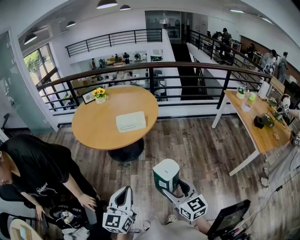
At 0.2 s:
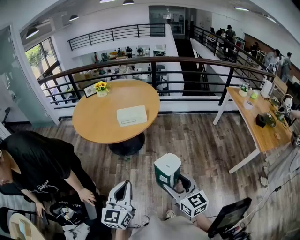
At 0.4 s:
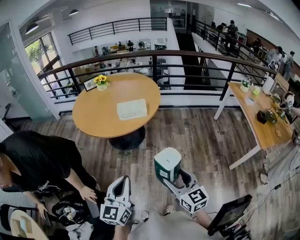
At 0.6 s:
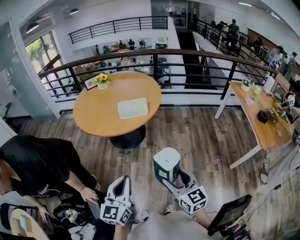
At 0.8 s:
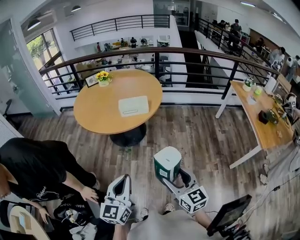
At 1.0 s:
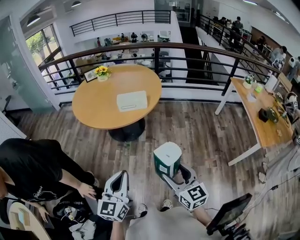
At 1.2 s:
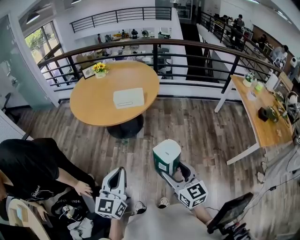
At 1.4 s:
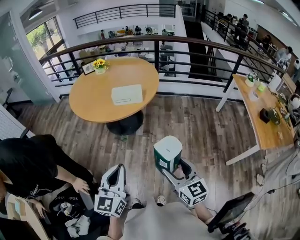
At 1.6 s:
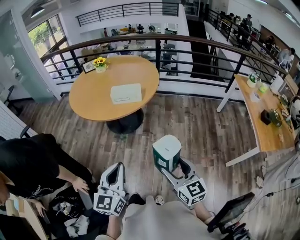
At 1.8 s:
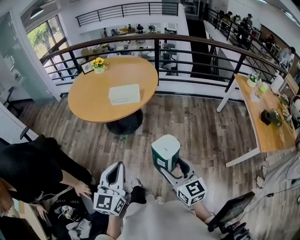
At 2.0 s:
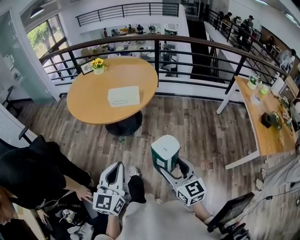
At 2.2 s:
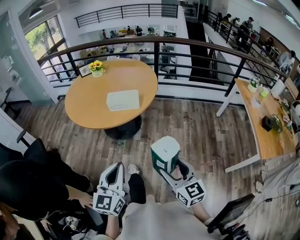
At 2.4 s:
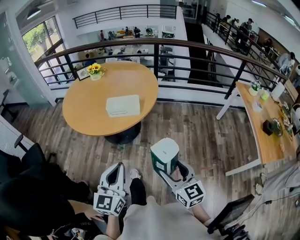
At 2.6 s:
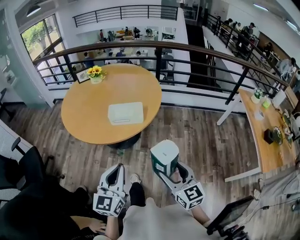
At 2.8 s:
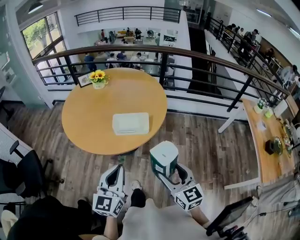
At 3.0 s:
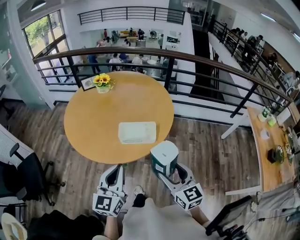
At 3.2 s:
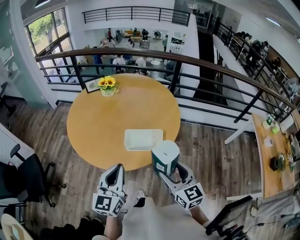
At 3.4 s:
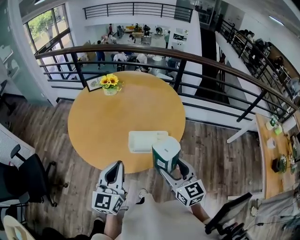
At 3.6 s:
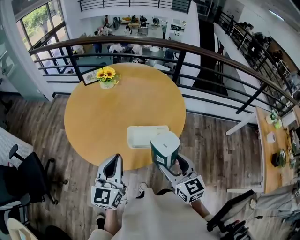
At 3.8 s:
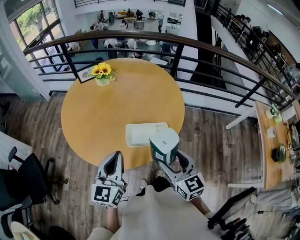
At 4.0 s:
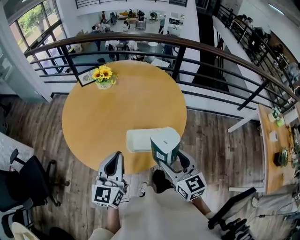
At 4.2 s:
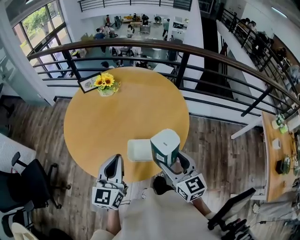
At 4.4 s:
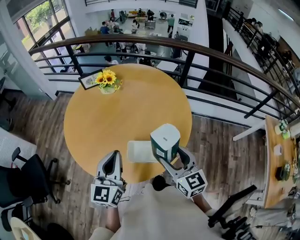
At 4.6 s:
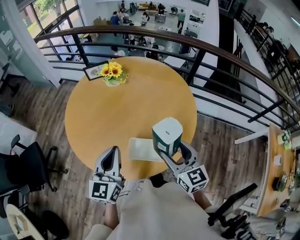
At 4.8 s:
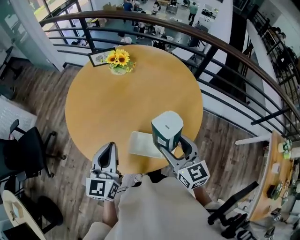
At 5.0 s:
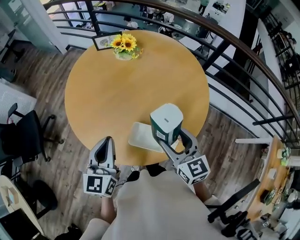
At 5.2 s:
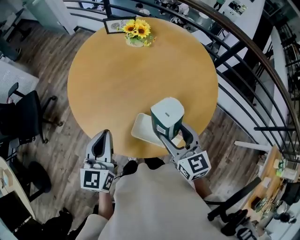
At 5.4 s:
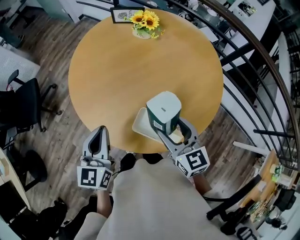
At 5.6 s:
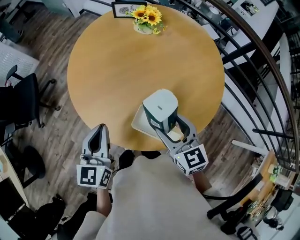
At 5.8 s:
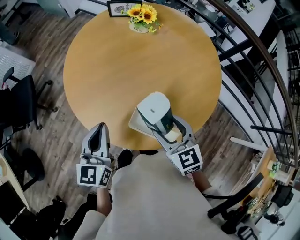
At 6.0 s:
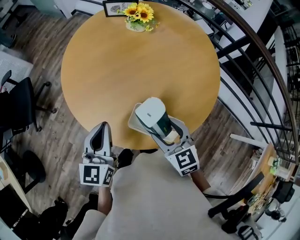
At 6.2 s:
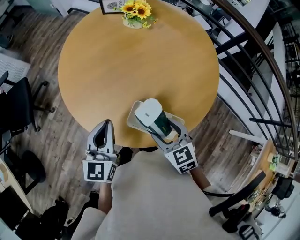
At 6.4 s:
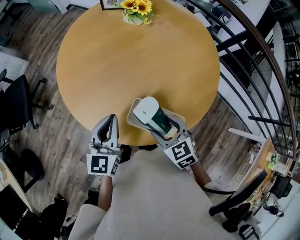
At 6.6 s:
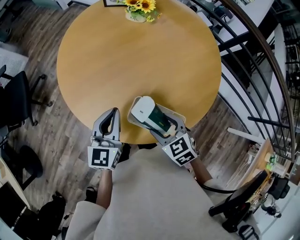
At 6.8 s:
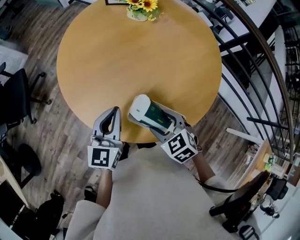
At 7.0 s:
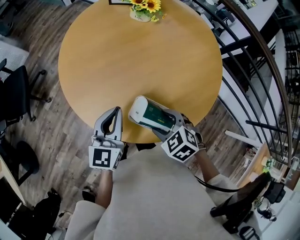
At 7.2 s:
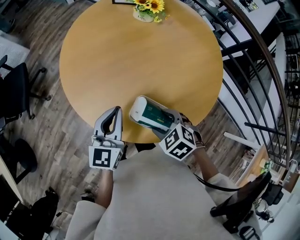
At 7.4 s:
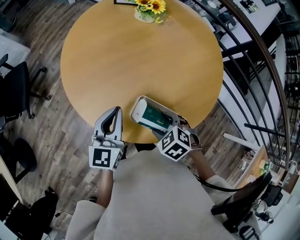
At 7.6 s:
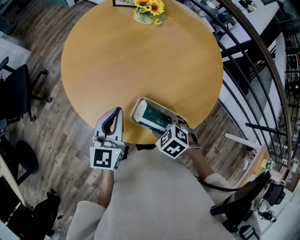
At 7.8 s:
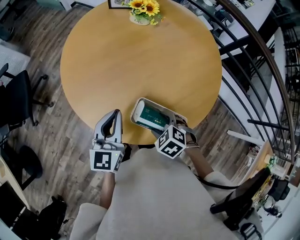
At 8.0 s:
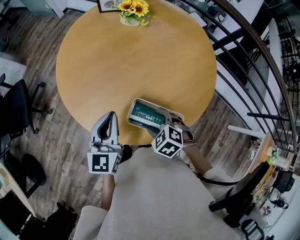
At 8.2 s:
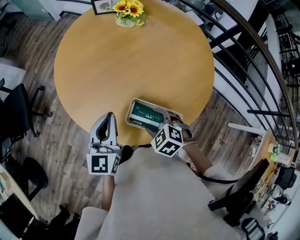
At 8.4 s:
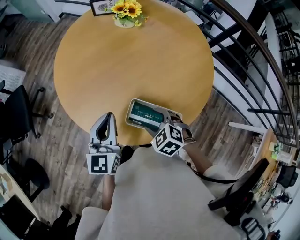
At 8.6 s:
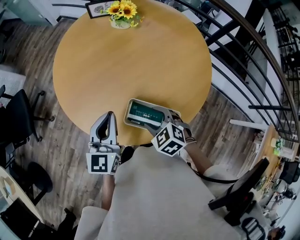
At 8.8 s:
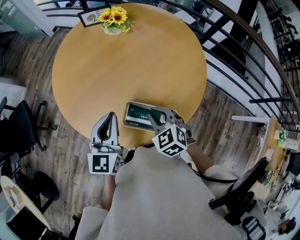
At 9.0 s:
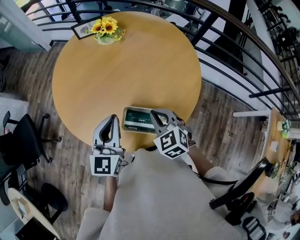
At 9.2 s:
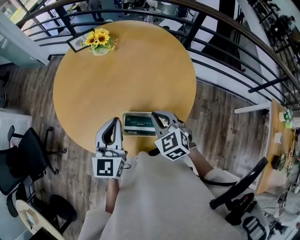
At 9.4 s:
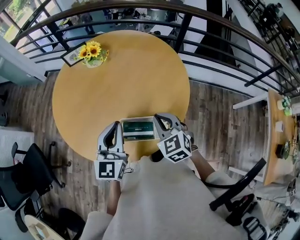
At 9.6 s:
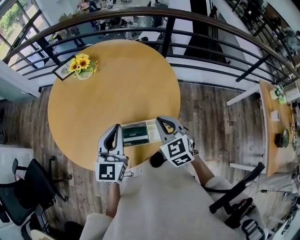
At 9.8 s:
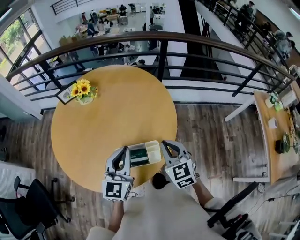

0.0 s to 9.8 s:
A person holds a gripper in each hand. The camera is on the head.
0.0 to 1.4 s: The right gripper goes roughly 5 cm to the right, while the left gripper shifts by some 5 cm.
1.4 to 2.8 s: Both grippers move forward, approximately 20 cm.
2.8 to 4.2 s: Both grippers move forward, roughly 20 cm.
4.2 to 5.6 s: The right gripper shifts by some 10 cm, and swivels some 30 degrees; the left gripper ends up about 10 cm from where it was, and rotates approximately 30 degrees.
5.6 to 7.0 s: The left gripper is displaced to the right by some 5 cm. Meanwhile the right gripper goes roughly 10 cm downward, and angles its fingers downward, by roughly 40 degrees.
7.0 to 8.4 s: The grippers move only a little.
8.4 to 9.8 s: The right gripper shifts by some 20 cm, angles its fingers upward, by approximately 40 degrees, and closes. Meanwhile the left gripper ends up about 15 cm from where it was, and swivels roughly 30 degrees.

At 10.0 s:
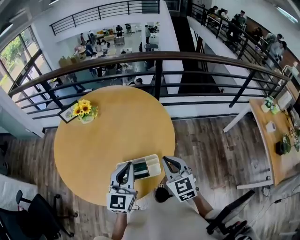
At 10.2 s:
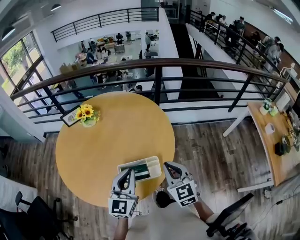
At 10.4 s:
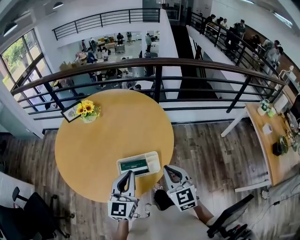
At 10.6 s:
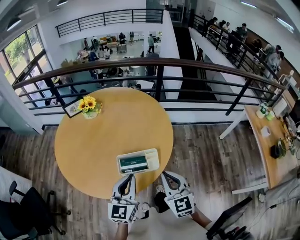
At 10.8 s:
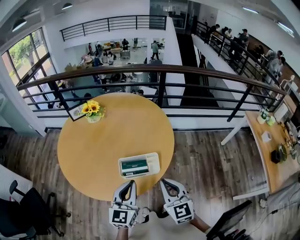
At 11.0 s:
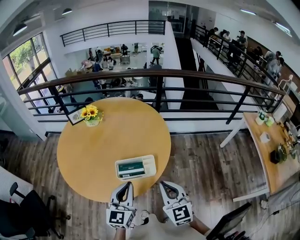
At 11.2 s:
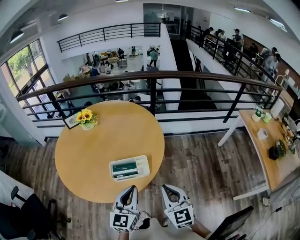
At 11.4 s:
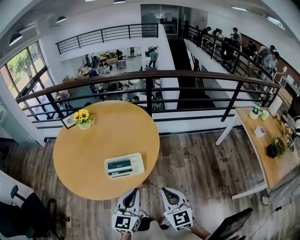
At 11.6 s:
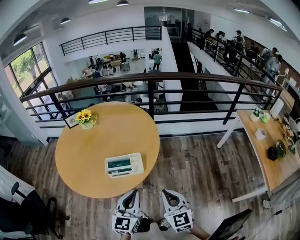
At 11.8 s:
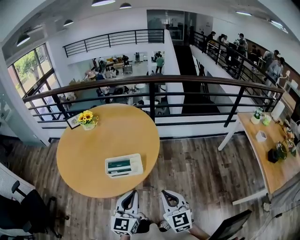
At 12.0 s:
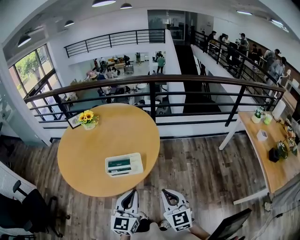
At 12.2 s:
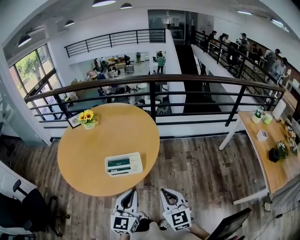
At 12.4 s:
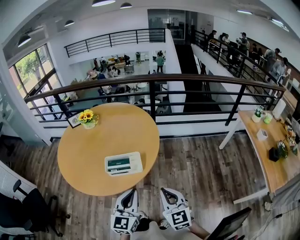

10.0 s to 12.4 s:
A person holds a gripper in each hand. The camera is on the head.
10.0 to 11.2 s: The two grippers go about 15 cm backward.
11.2 to 12.4 s: The left gripper ends up some 5 cm from where it was. Meanwhile the right gripper moves some 5 cm.

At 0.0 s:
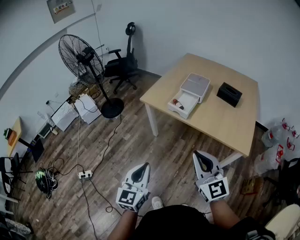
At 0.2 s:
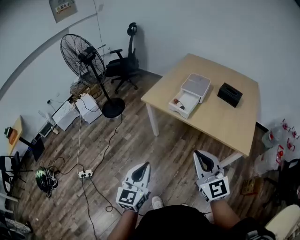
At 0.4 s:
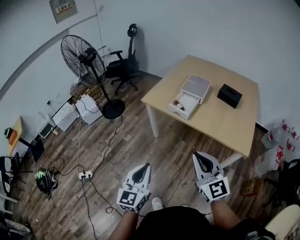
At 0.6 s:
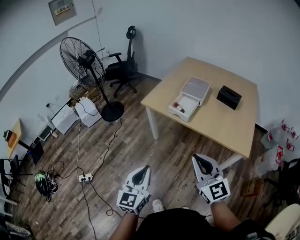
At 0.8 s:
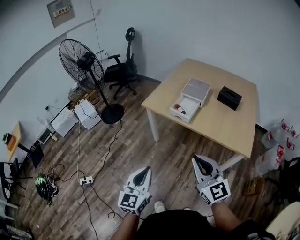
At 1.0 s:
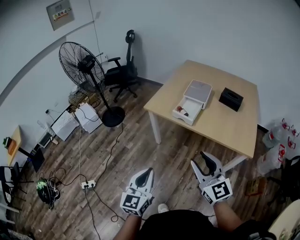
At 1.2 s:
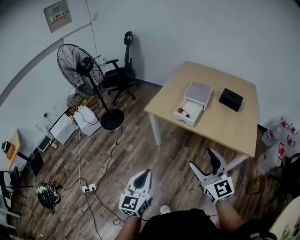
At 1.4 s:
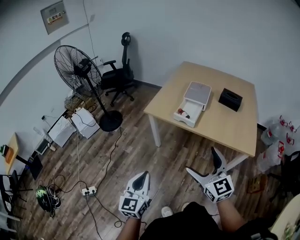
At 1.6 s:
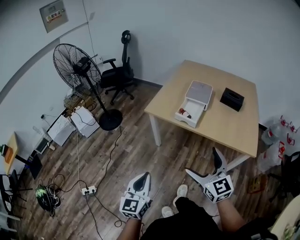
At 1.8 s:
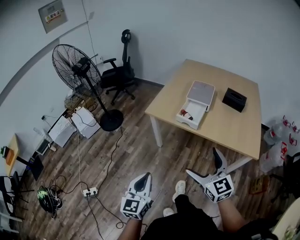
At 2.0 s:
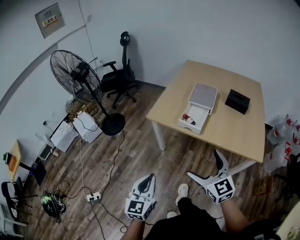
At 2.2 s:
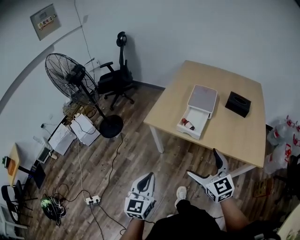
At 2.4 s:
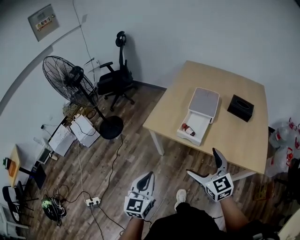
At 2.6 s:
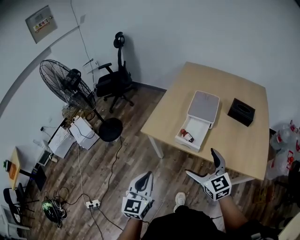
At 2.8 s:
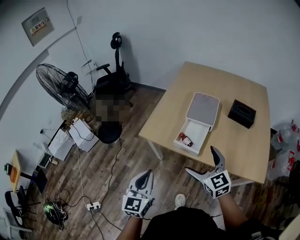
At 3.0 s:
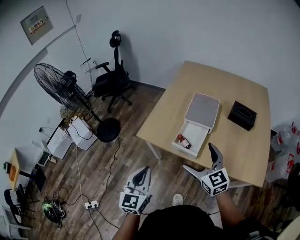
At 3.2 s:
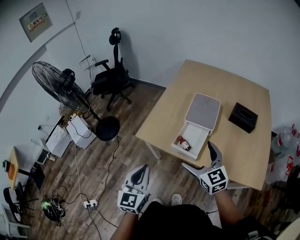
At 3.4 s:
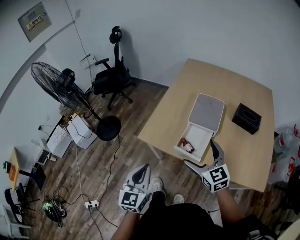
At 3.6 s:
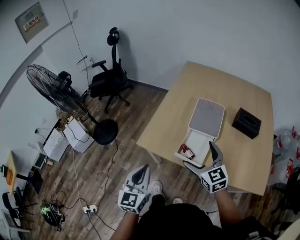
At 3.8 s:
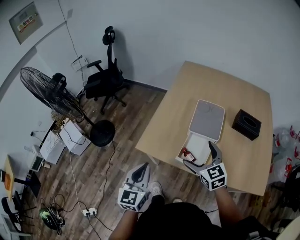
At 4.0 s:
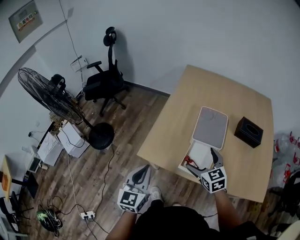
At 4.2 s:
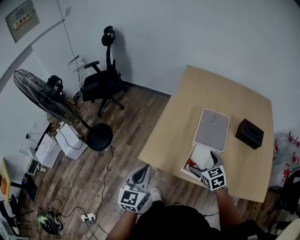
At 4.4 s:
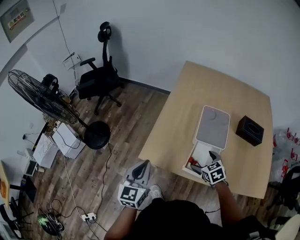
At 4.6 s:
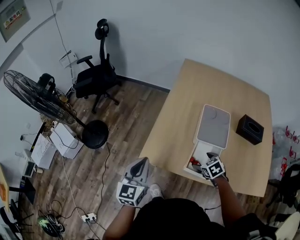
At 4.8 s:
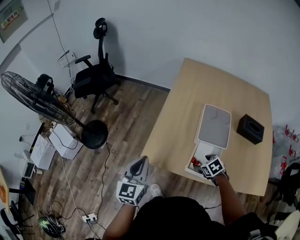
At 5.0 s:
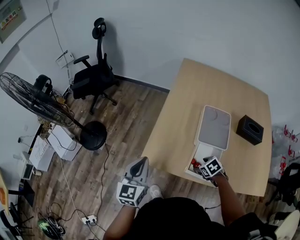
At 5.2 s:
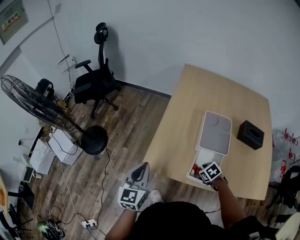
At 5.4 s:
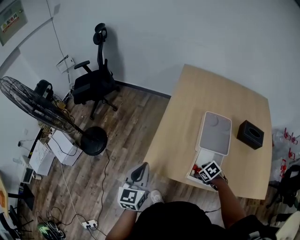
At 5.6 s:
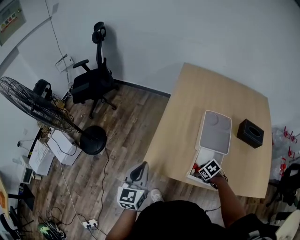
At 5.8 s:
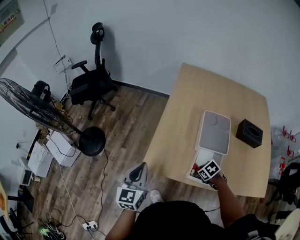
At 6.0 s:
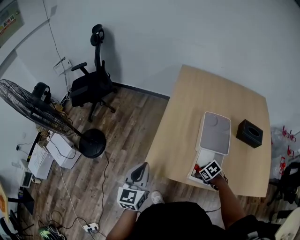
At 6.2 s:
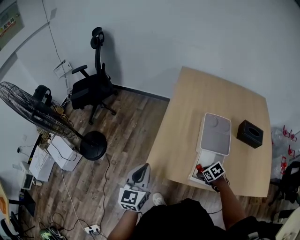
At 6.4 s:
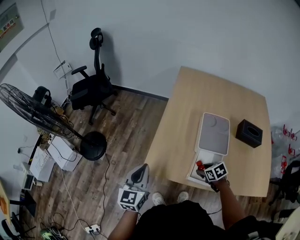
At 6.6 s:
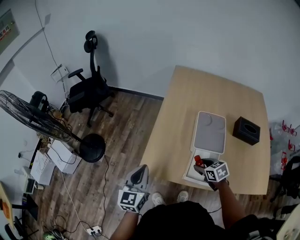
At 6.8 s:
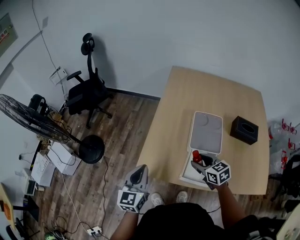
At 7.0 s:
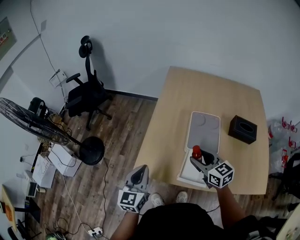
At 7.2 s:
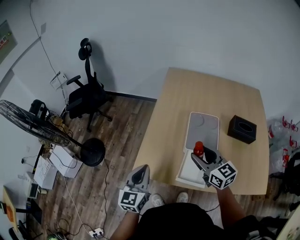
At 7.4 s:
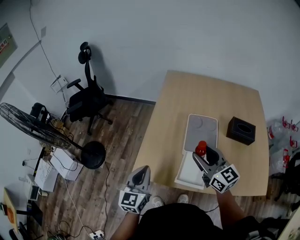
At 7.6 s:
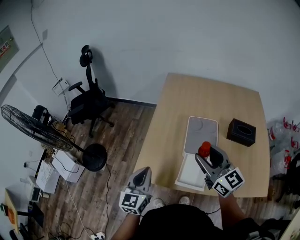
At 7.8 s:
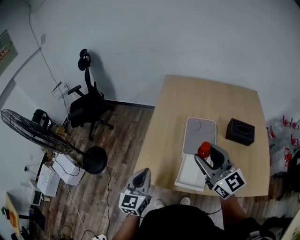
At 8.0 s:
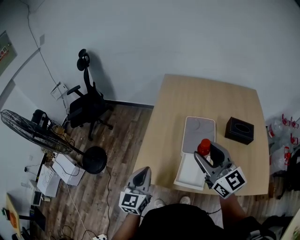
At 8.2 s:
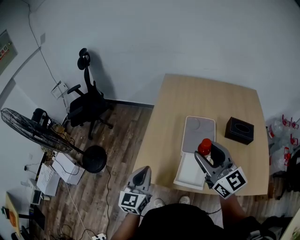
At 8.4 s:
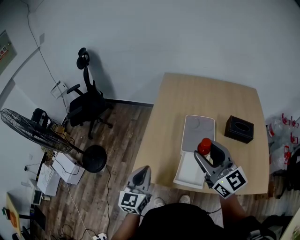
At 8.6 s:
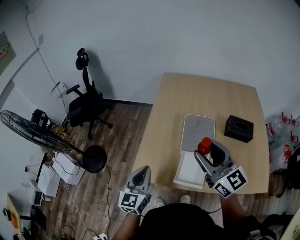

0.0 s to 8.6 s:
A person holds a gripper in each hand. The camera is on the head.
0.0 to 1.4 s: Both grippers travel together to the left, approximately 10 cm. The right gripper opens.
1.4 to 2.8 s: Both grippers move forward, some 25 cm.
2.8 to 4.4 s: The left gripper shifts approximately 25 cm forward; the right gripper goes some 25 cm forward and downward, and angles its fingers downward, by roughly 30 degrees.
4.4 to 5.8 s: The right gripper heads downward, covering some 10 cm, turns by some 30 degrees, and closes its fingers. Meanwhile the left gripper travels forward by some 5 cm.
5.8 to 7.2 s: The left gripper heads to the right, covering approximately 10 cm; the right gripper shifts approximately 25 cm upward, and angles its fingers upward, by about 60 degrees.
7.2 to 8.6 s: The right gripper heads upward, covering roughly 15 cm.

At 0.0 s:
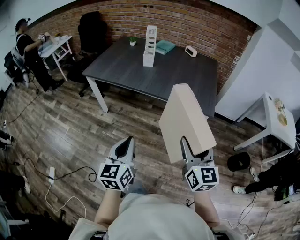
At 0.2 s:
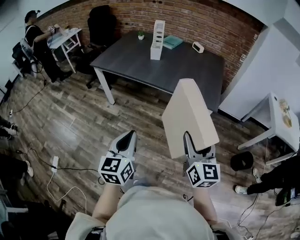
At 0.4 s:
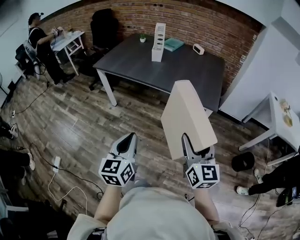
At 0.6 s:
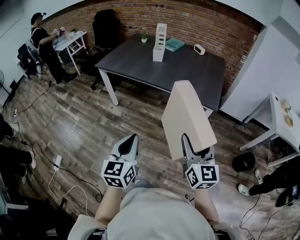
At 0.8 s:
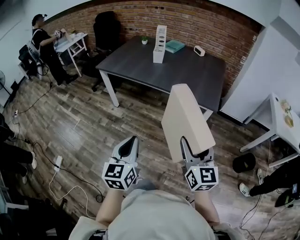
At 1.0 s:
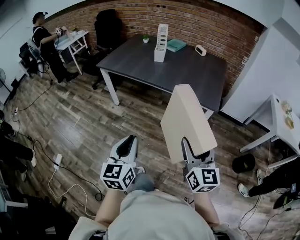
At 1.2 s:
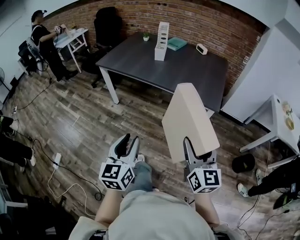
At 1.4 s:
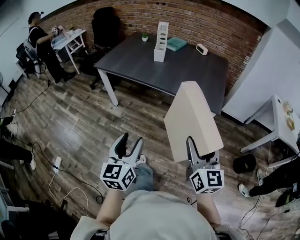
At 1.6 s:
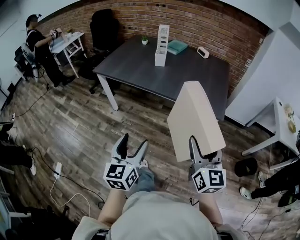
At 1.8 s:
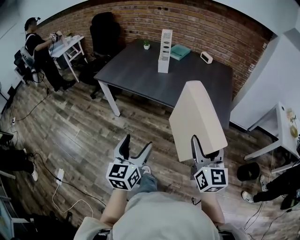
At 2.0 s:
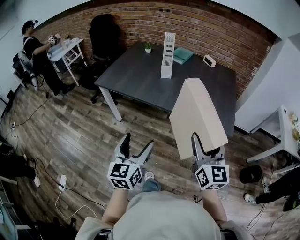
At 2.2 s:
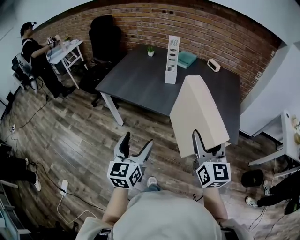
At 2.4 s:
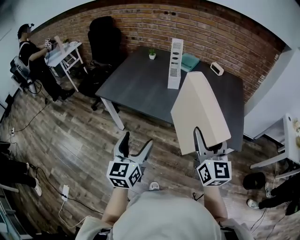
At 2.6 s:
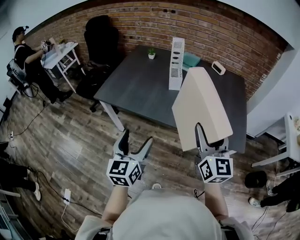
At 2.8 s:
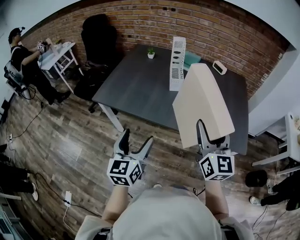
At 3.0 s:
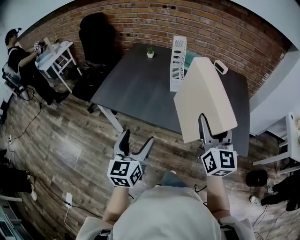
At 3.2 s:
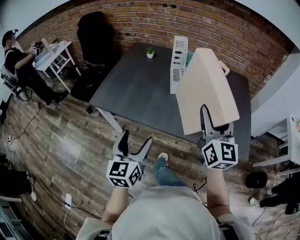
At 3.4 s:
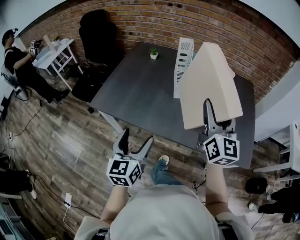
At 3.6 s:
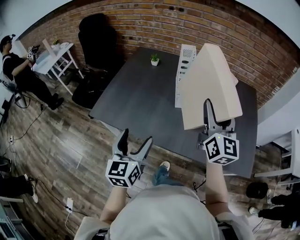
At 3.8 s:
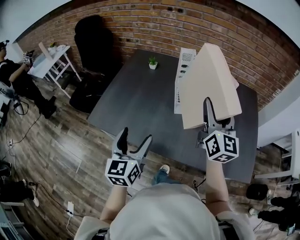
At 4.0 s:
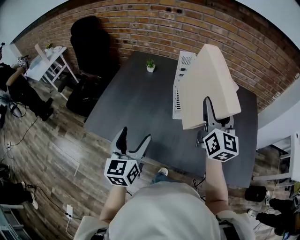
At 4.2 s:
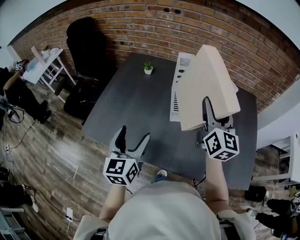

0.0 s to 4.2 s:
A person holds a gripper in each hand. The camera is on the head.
0.0 to 1.4 s: The left gripper opens its fingers.
1.4 to 2.8 s: Both grippers travel together forward and to the left, some 40 cm. The left gripper opens up.
2.8 to 4.2 s: The grippers both shift forward by approximately 30 cm.
